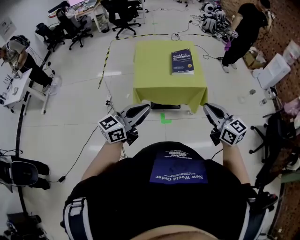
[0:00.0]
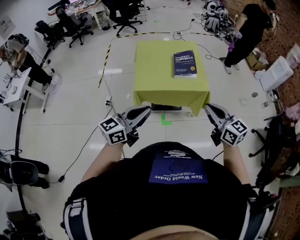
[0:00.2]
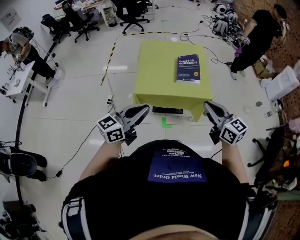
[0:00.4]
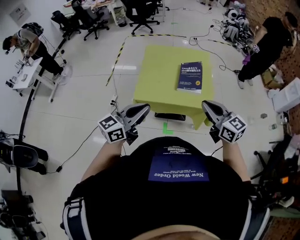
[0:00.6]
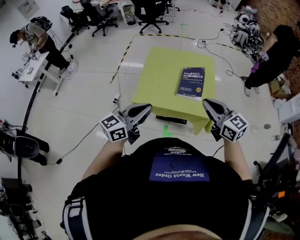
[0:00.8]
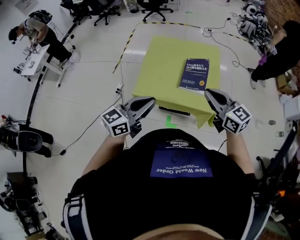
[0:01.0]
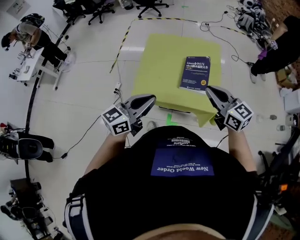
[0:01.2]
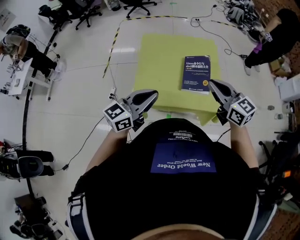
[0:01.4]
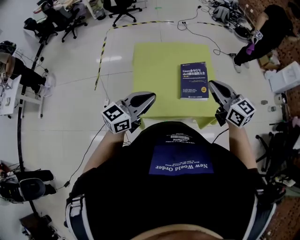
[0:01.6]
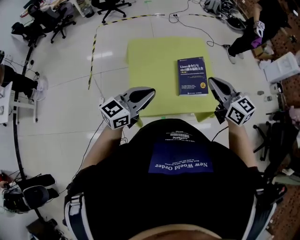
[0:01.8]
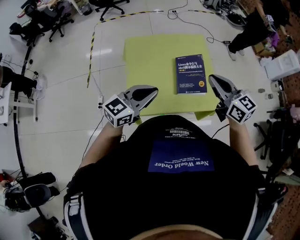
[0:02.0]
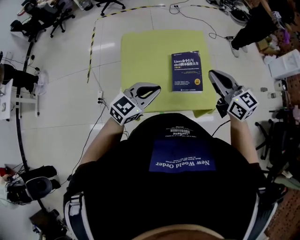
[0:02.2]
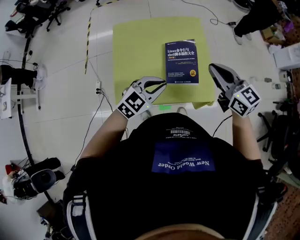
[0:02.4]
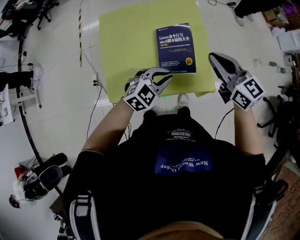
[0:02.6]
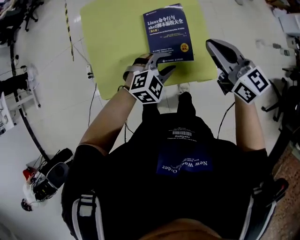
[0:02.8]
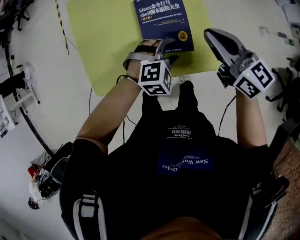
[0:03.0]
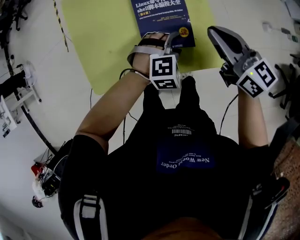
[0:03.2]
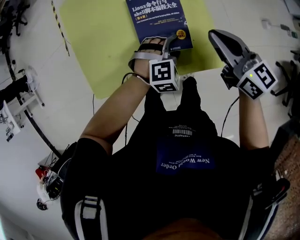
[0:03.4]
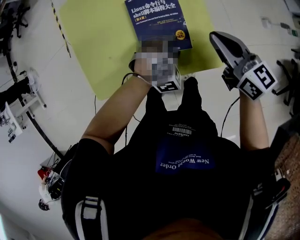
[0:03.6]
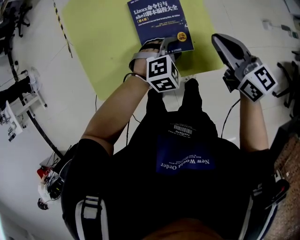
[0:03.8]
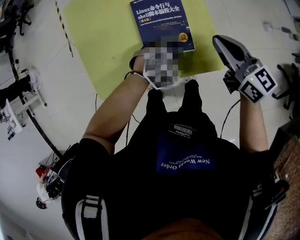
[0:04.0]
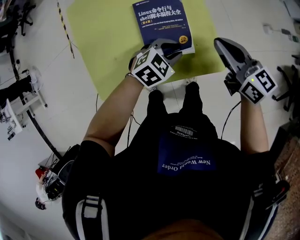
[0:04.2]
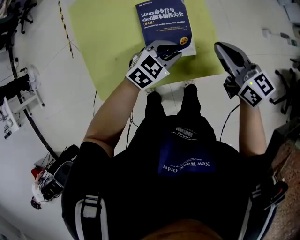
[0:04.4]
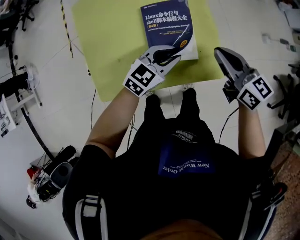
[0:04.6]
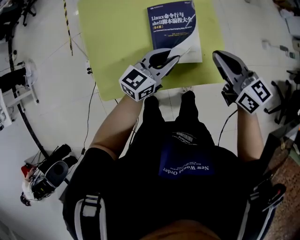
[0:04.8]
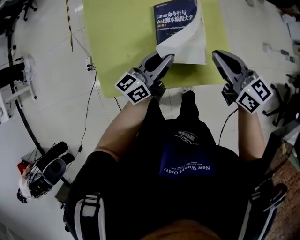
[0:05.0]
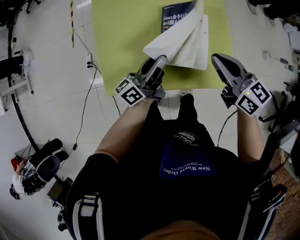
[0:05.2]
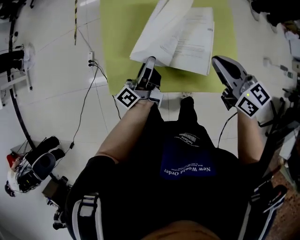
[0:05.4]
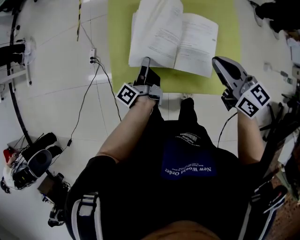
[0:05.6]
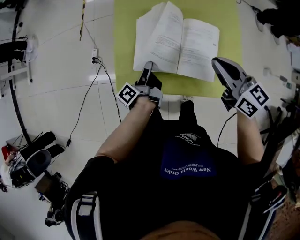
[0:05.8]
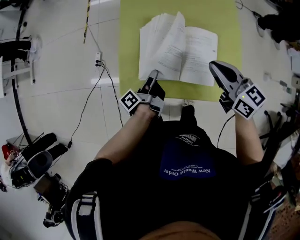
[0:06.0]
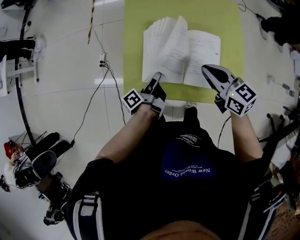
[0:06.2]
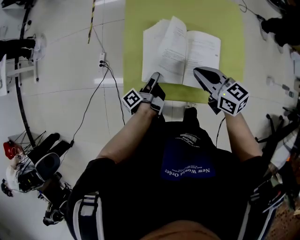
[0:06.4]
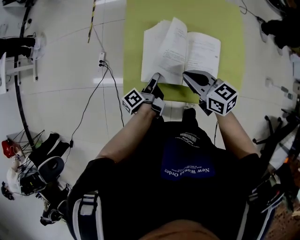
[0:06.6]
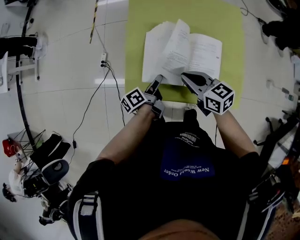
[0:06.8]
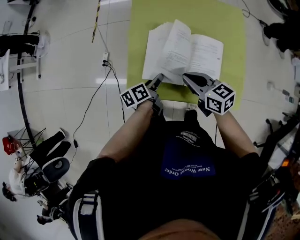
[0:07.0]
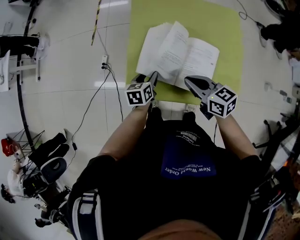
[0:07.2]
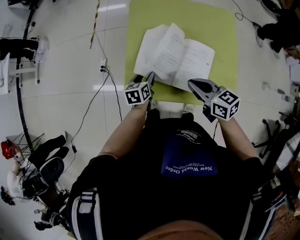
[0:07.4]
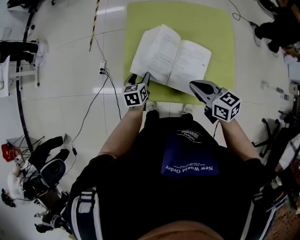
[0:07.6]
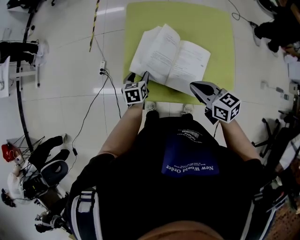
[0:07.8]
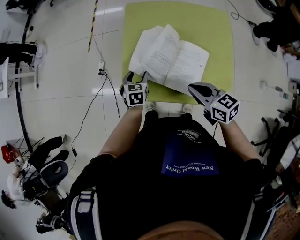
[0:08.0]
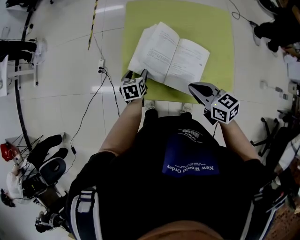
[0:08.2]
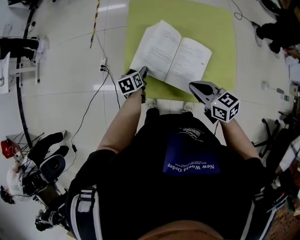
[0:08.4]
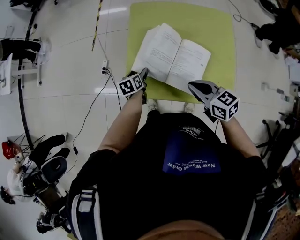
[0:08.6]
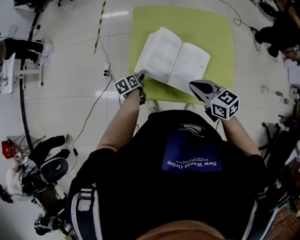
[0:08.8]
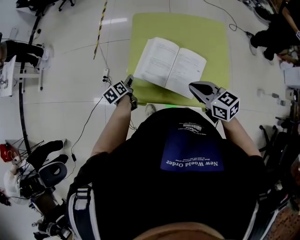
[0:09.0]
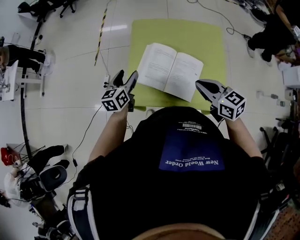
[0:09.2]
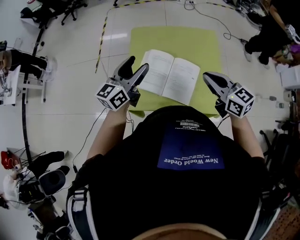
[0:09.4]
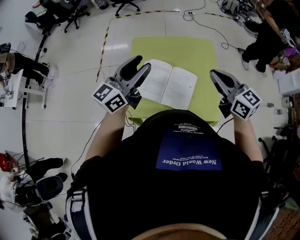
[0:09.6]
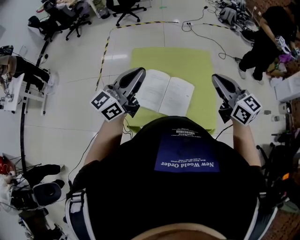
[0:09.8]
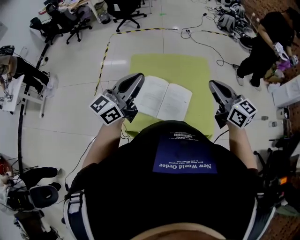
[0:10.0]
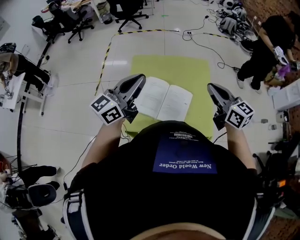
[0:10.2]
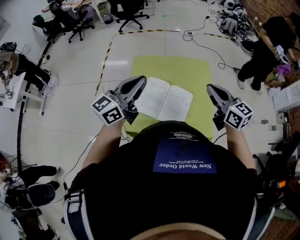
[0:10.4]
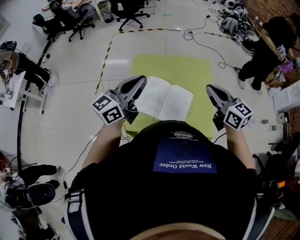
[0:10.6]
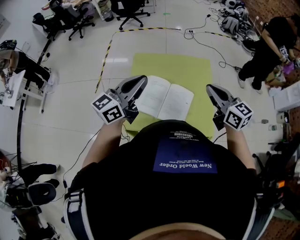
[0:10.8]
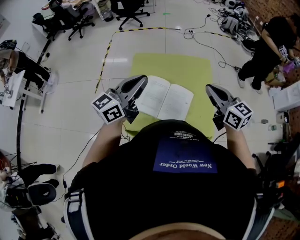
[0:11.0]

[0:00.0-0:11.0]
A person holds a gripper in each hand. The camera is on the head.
0.0 to 1.6 s: The grippers both shift forward by about 40 cm.
1.6 to 3.2 s: The left gripper shifts some 50 cm downward, to the right and forward, angles its fingers downward, by roughly 60 degrees, and opens its fingers. Meanwhile the right gripper shifts some 25 cm downward, to the right and forward.
3.2 to 4.8 s: The left gripper moves upward and to the left, some 10 cm, points its fingers approximately 40 degrees further upward, and closes up.
4.8 to 6.2 s: The left gripper moves roughly 25 cm, and rolls counterclockwise, seen from behind, by roughly 80 degrees. The right gripper moves roughly 20 cm.
6.2 to 7.8 s: The left gripper travels forward and to the left by approximately 10 cm, rolls clockwise, seen from behind, by about 70 degrees, and opens.
7.8 to 9.4 s: The right gripper moves upward and to the right, some 15 cm, while the left gripper moves upward, roughly 30 cm, and angles its fingers upward, by about 50 degrees.
9.4 to 11.0 s: The two grippers go some 10 cm upward. The left gripper closes.

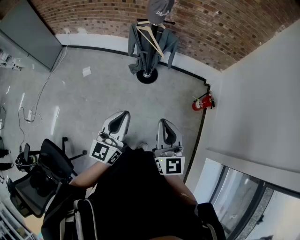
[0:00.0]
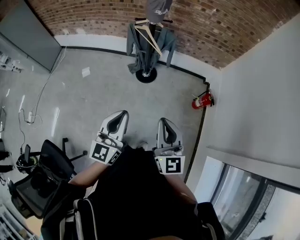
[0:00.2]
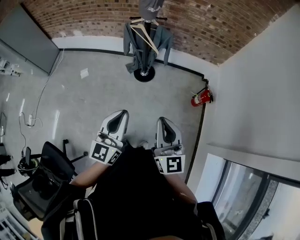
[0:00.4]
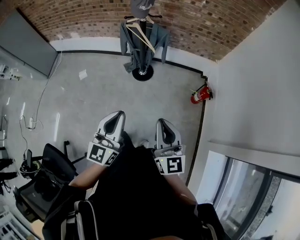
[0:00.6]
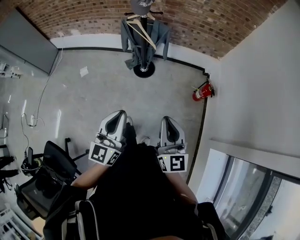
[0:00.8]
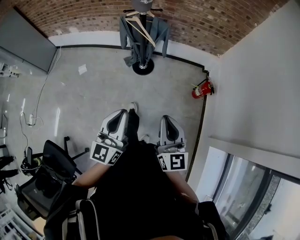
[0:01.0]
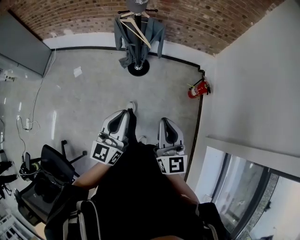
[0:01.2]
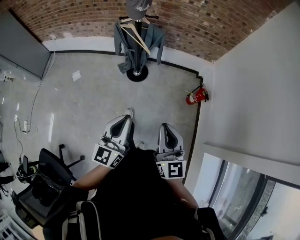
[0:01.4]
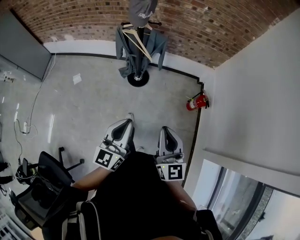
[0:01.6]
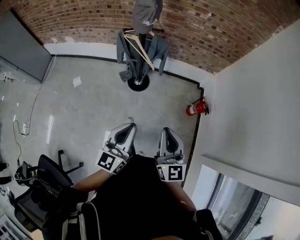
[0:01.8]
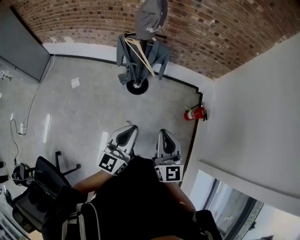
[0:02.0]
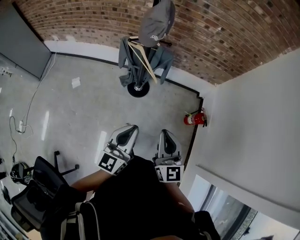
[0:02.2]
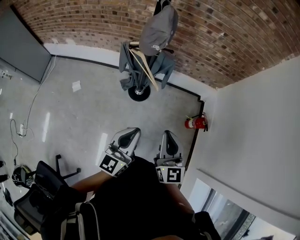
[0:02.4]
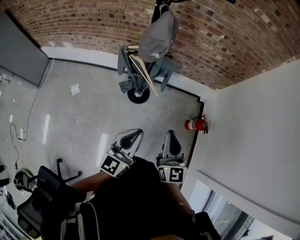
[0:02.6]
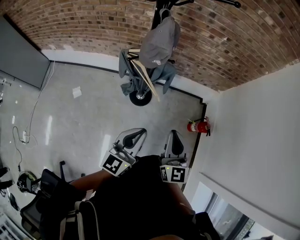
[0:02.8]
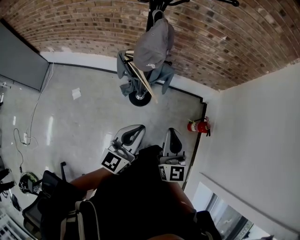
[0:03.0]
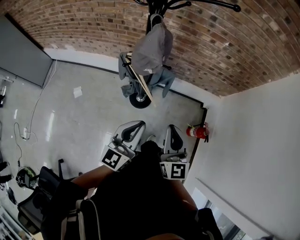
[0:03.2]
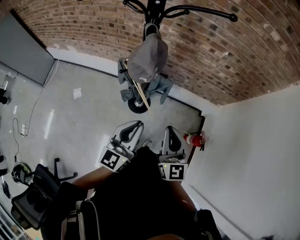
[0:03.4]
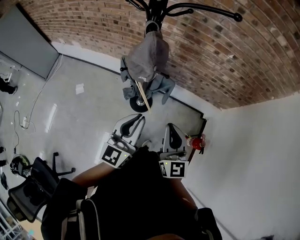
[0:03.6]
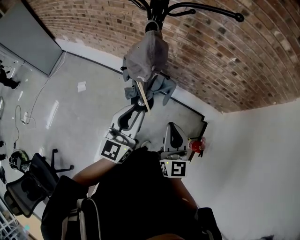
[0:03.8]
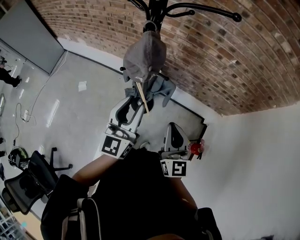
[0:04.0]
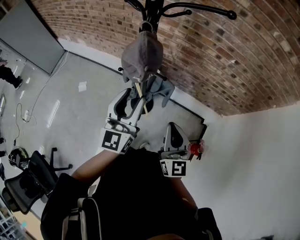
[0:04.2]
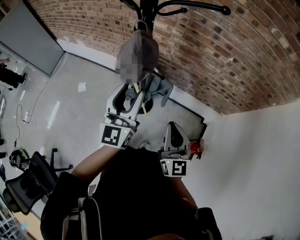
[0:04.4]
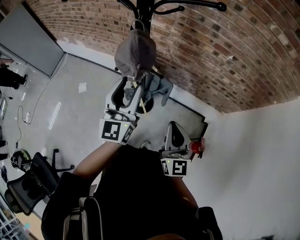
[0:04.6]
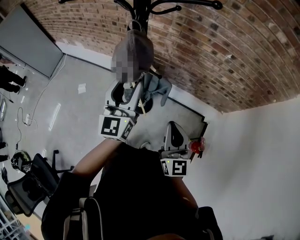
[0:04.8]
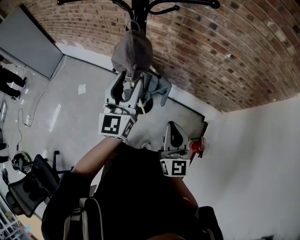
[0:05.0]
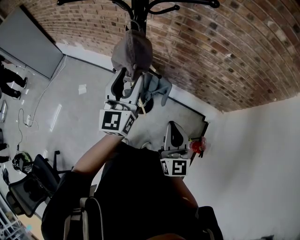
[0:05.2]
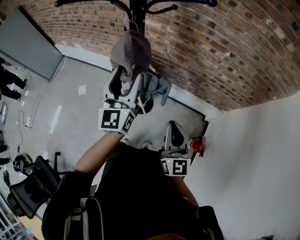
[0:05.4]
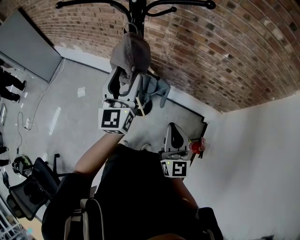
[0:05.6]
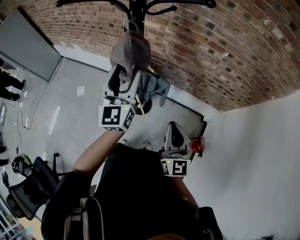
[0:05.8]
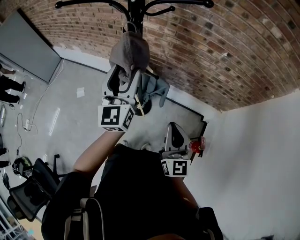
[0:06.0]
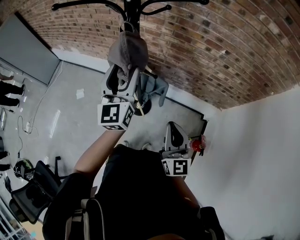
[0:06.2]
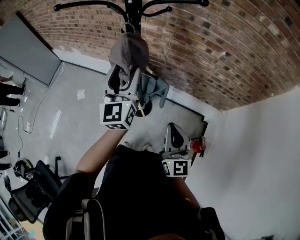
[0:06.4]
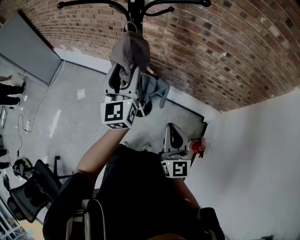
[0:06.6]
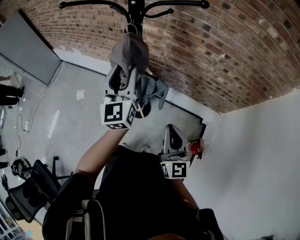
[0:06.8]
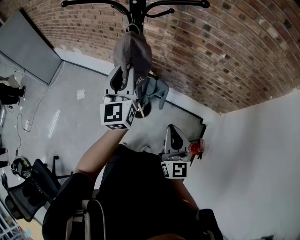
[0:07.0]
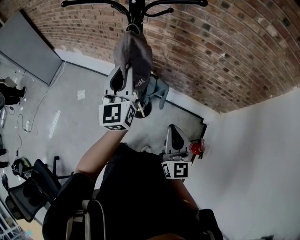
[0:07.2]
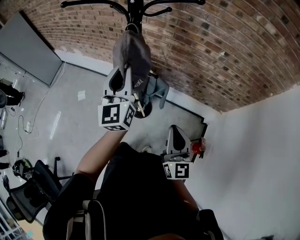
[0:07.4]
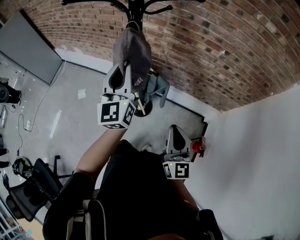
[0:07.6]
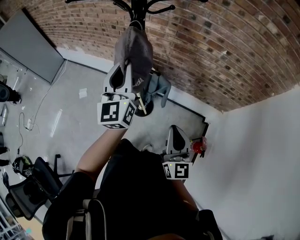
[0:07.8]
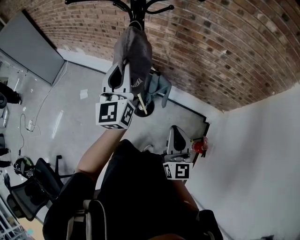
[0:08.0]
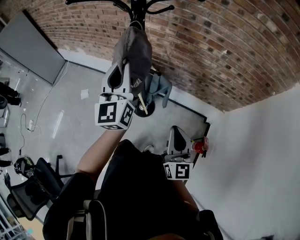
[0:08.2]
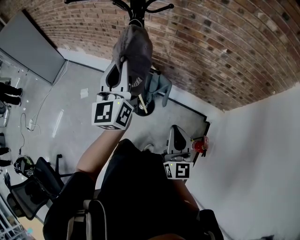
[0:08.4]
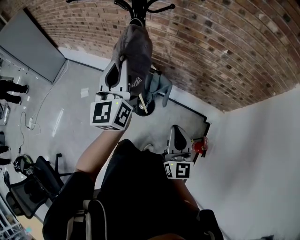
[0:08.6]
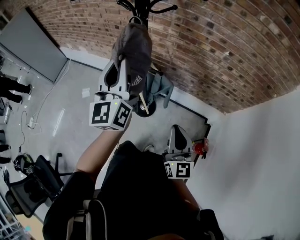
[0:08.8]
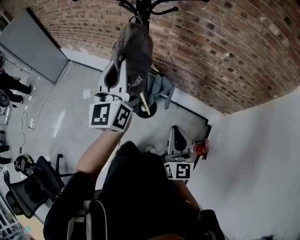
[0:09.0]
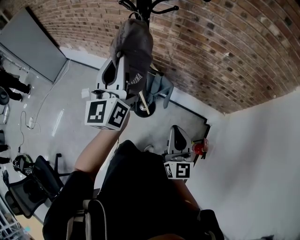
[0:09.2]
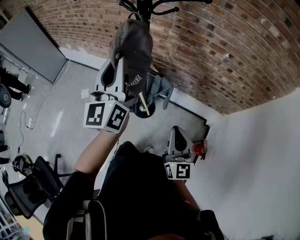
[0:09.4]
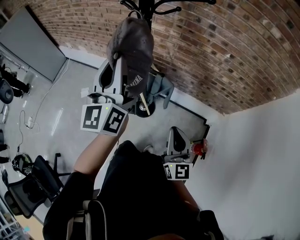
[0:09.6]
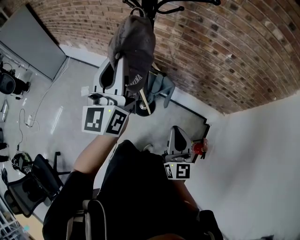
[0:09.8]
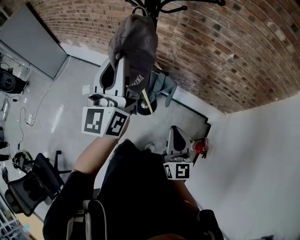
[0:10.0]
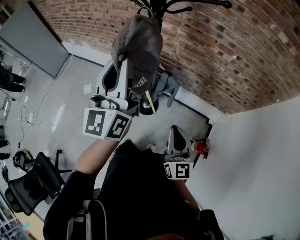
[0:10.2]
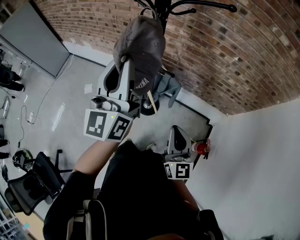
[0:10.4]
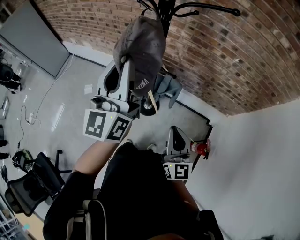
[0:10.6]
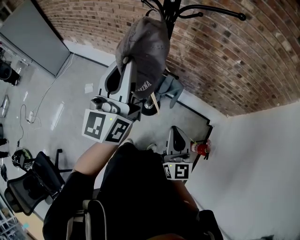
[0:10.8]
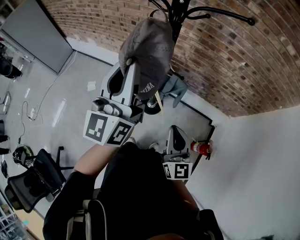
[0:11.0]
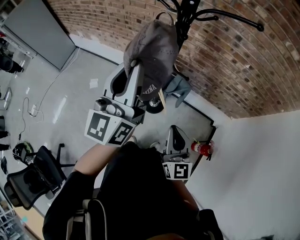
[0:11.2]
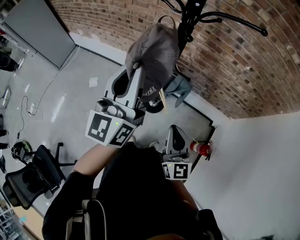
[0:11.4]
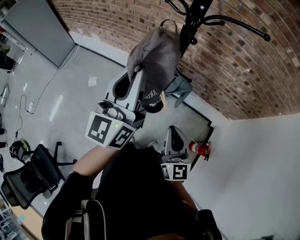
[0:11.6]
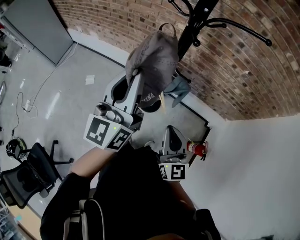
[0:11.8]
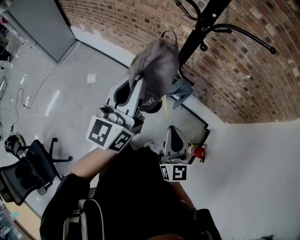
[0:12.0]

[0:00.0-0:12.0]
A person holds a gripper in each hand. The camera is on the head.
0.0 to 1.6 s: Both grippers move to the right, about 5 cm.
1.6 to 3.0 s: Both grippers travel together forward, about 25 cm.
3.0 to 4.4 s: The right gripper is displaced forward and to the right by some 15 cm. Meanwhile the left gripper heads forward and upward, covering some 20 cm, turns by roughly 30 degrees, and opens up.
4.4 to 6.0 s: The left gripper moves forward, some 5 cm.
6.0 to 7.6 s: The left gripper closes its fingers.
7.6 to 9.0 s: The left gripper is displaced upward by roughly 5 cm.
9.0 to 10.4 s: The left gripper ends up approximately 5 cm from where it was.
10.4 to 12.0 s: Both grippers travel together to the left, roughly 10 cm.

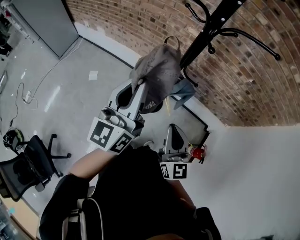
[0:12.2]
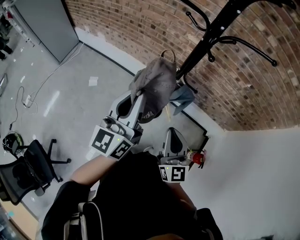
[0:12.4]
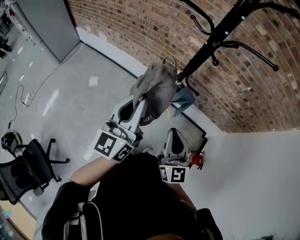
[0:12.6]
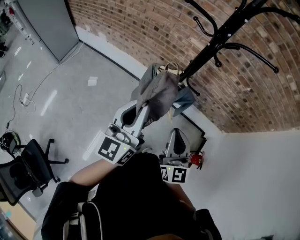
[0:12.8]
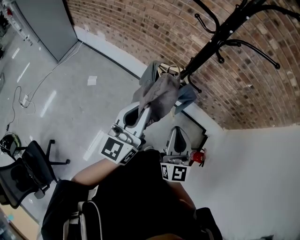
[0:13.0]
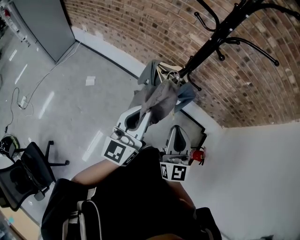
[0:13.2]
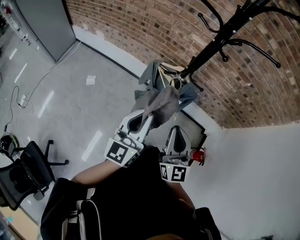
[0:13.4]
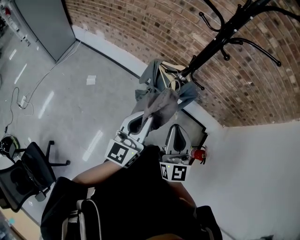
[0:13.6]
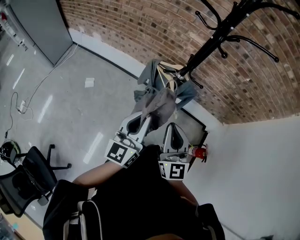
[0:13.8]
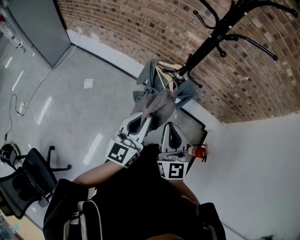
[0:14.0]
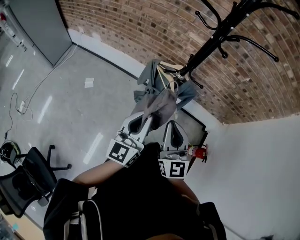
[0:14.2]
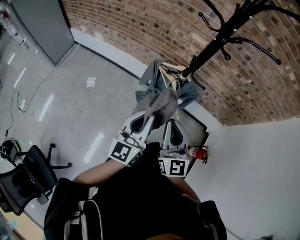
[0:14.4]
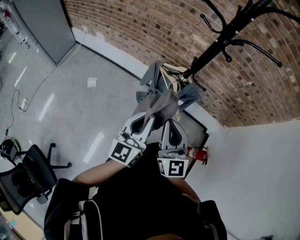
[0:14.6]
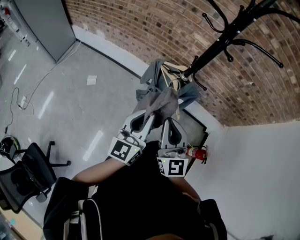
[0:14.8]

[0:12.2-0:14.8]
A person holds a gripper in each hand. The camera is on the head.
12.2 to 13.4 s: The left gripper goes approximately 10 cm downward and backward. Meanwhile the right gripper ends up some 5 cm from where it was.
13.4 to 14.8 s: The right gripper shifts some 5 cm to the left.
